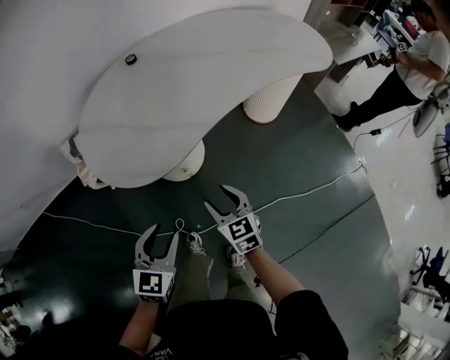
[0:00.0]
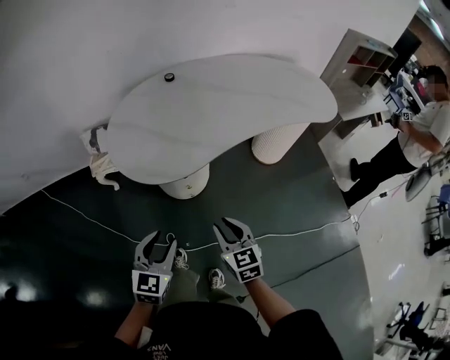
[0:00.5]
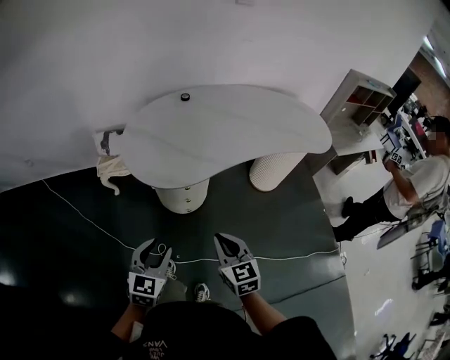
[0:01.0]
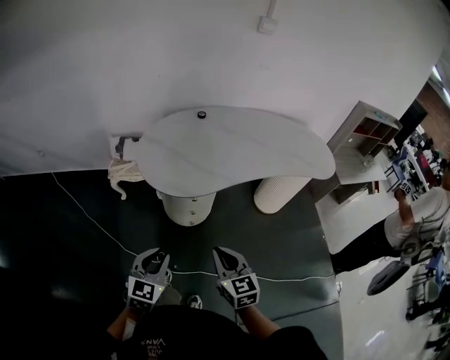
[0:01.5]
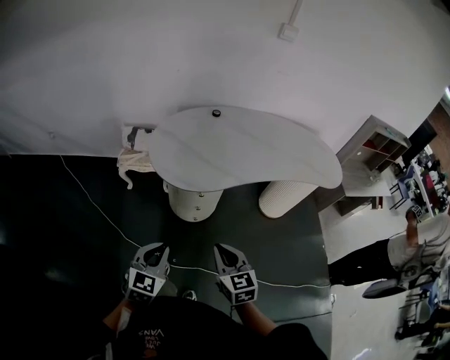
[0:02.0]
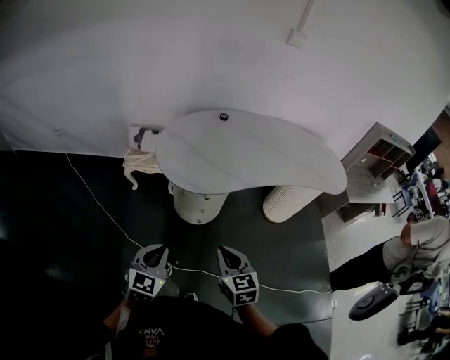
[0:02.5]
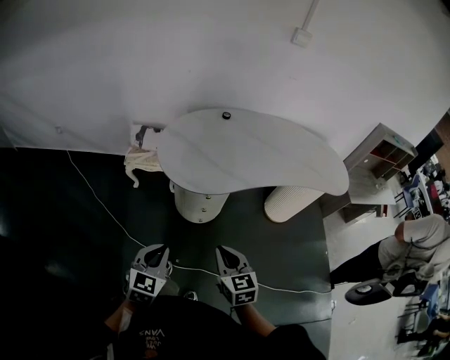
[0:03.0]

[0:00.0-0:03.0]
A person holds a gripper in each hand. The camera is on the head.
0:00.0 to 0:01.5: The left gripper goes about 15 cm backward and upward, and closes its fingers; the right gripper goes approximately 20 cm upward and backward, and closes up.
0:01.5 to 0:03.0: The grippers move only a little.

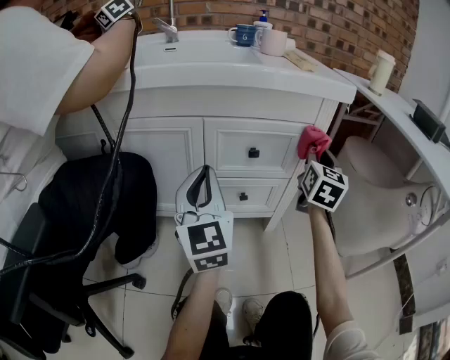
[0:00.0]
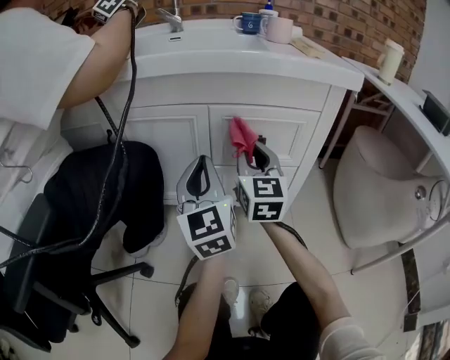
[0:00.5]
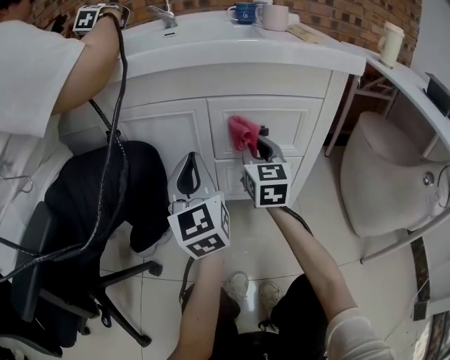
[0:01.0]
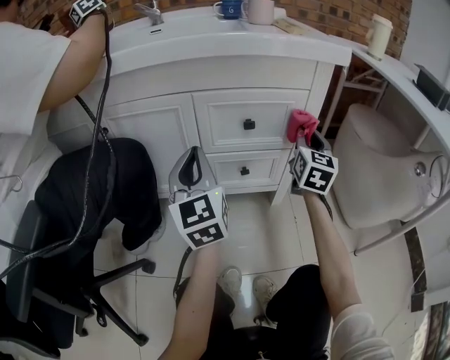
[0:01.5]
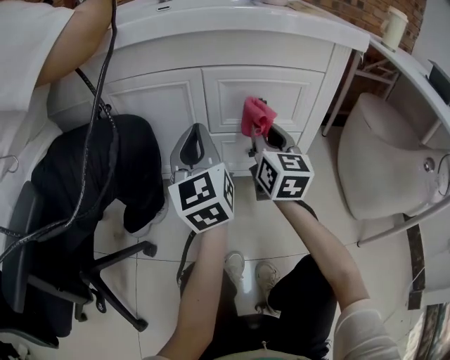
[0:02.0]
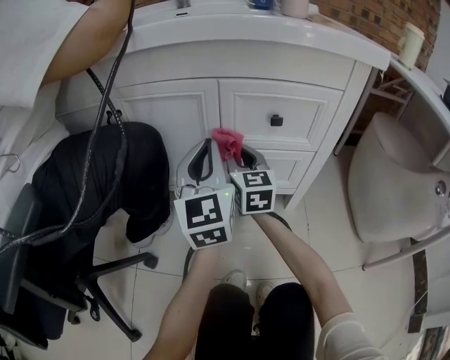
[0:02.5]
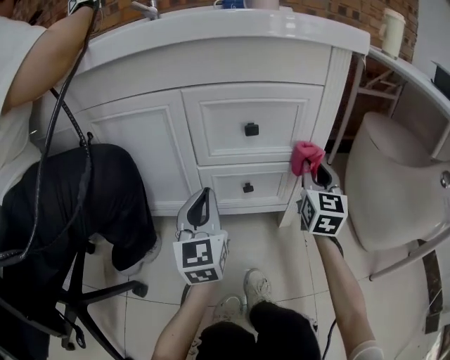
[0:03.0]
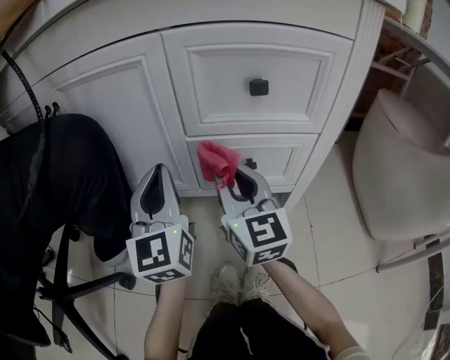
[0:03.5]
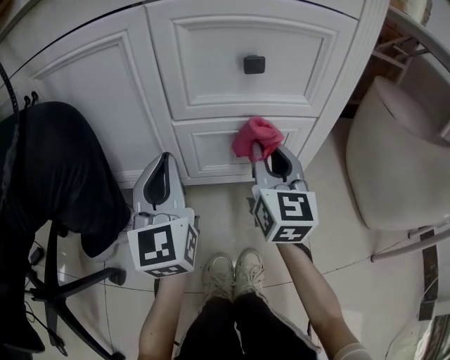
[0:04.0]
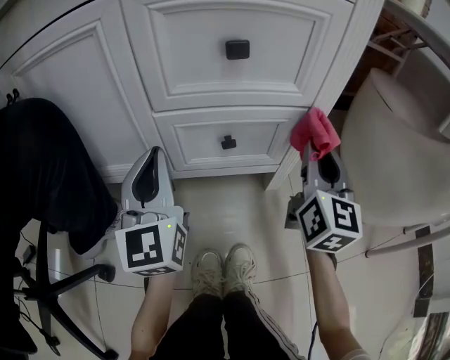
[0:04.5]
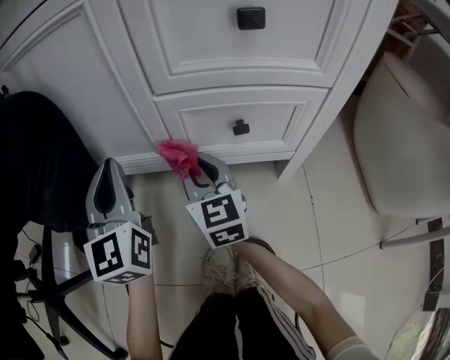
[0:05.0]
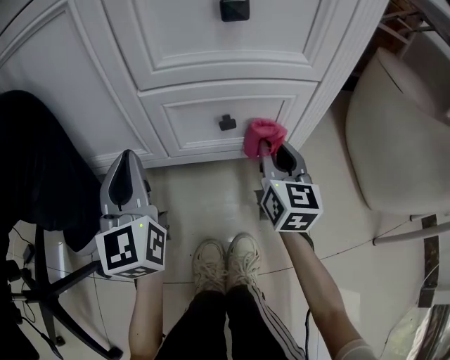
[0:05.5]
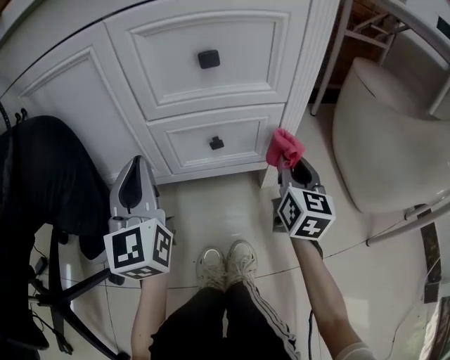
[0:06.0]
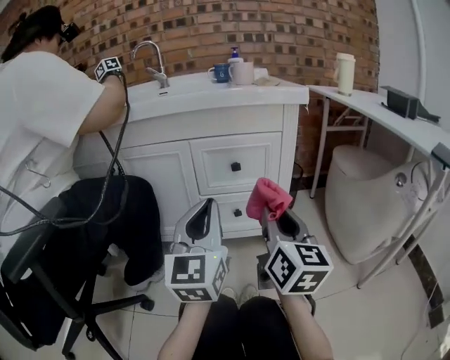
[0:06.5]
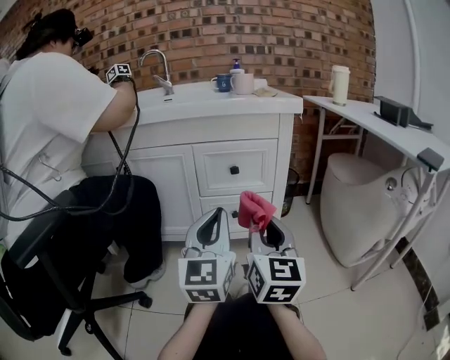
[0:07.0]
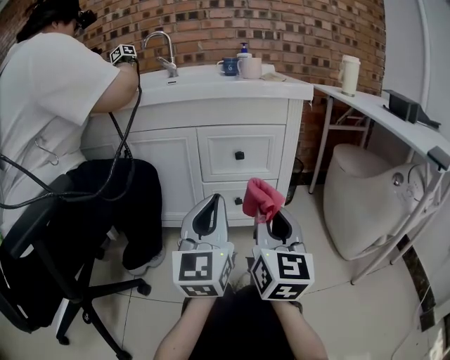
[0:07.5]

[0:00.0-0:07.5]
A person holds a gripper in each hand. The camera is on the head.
0:00.0 to 0:02.0: The right gripper goes left and right, approximately 20 cm each way, reversing 2 times, and rotates roughly 30 degrees.
0:02.0 to 0:04.0: The right gripper moves left and right over approximately 25 cm, changing direction 3 times; the left gripper moves downward, approximately 15 cm.
0:04.0 to 0:05.5: The right gripper moves left and right over approximately 30 cm, changing direction 2 times. Meanwhile the left gripper goes some 5 cm downward, and travels to the left and back again, about 10 cm each way.
0:05.5 to 0:07.5: The left gripper shifts approximately 35 cm upward, backward and to the right; the right gripper goes some 40 cm upward and backward.

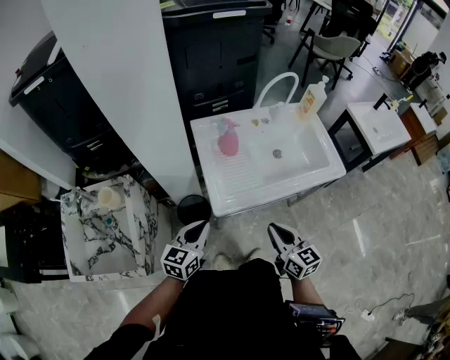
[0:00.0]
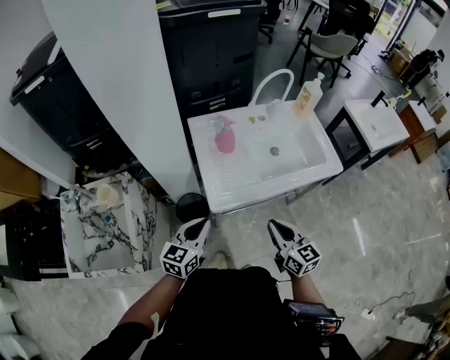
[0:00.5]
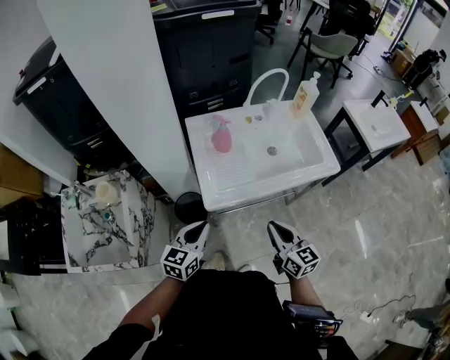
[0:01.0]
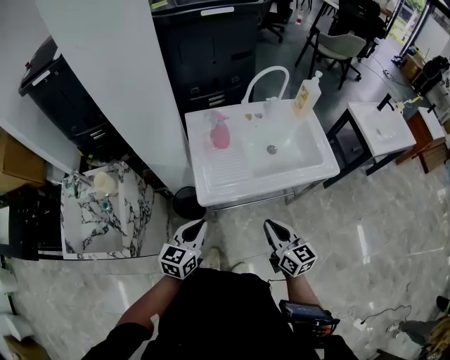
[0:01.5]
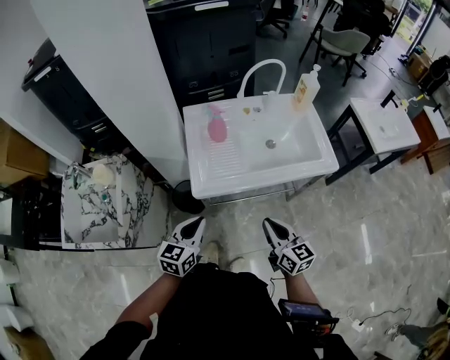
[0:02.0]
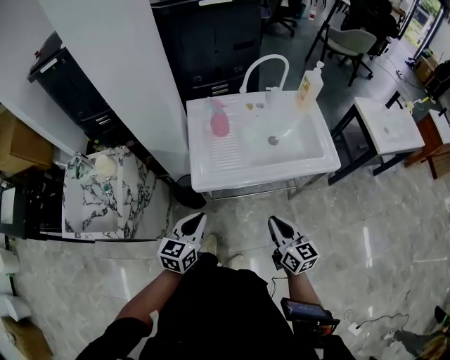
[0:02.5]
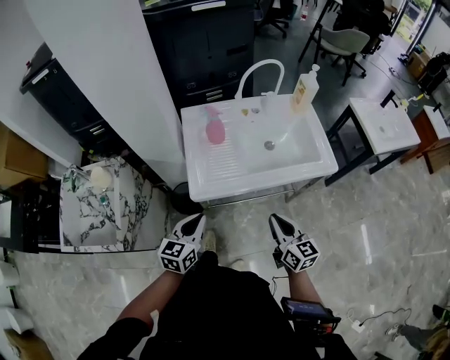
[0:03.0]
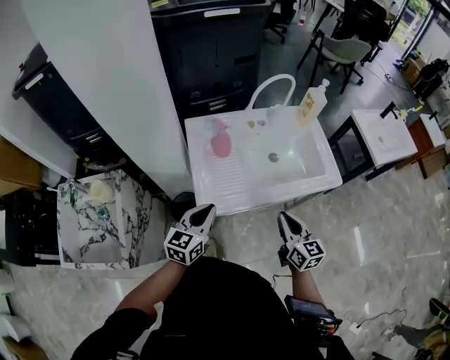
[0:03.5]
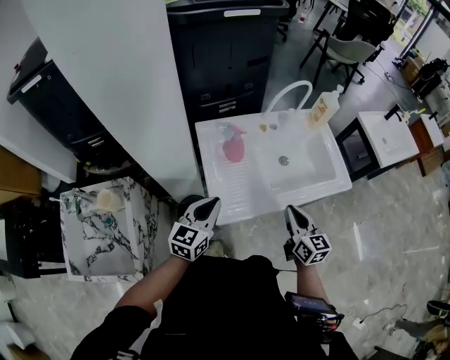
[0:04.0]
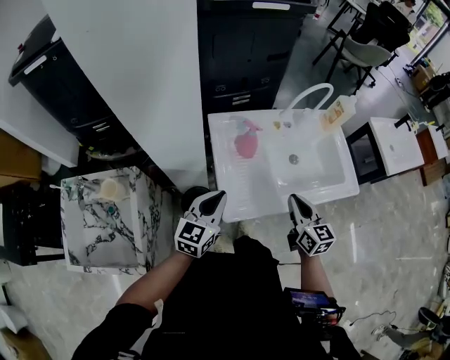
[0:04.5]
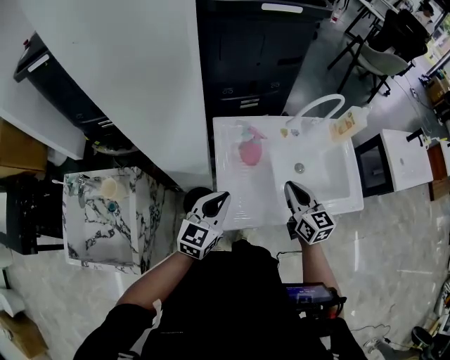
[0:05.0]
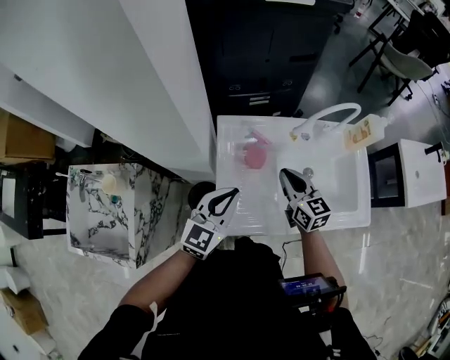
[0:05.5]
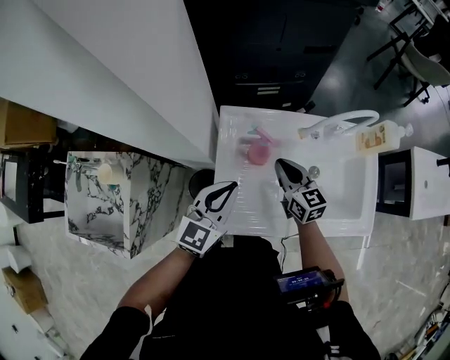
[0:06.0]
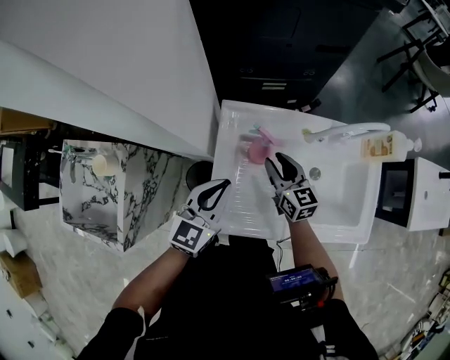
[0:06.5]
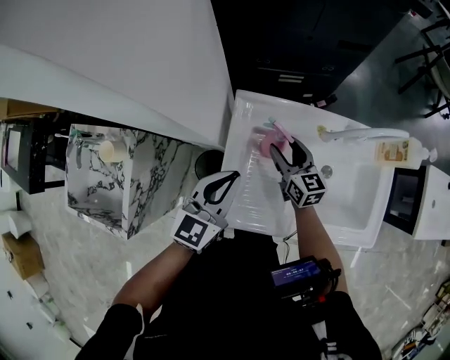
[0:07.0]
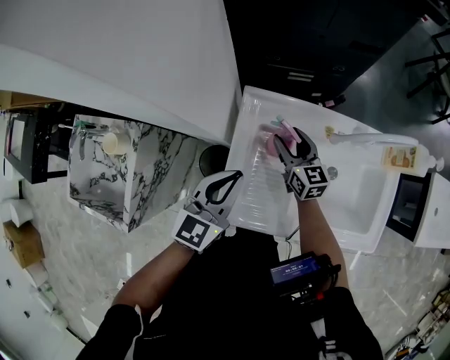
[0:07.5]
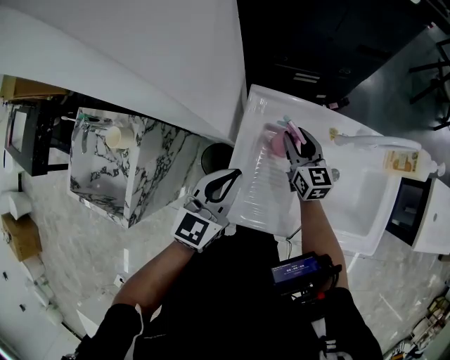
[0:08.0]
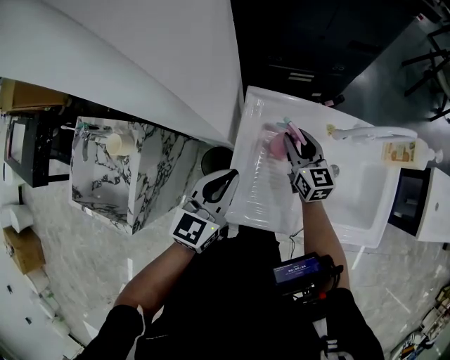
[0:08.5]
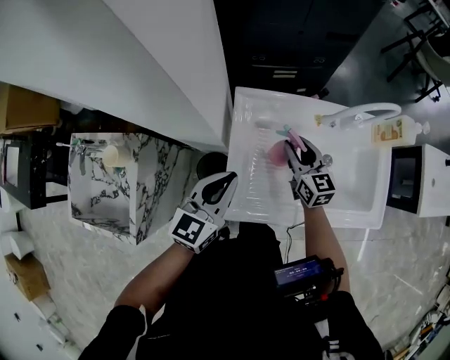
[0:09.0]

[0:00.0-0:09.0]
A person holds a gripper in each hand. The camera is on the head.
0:00.0 to 0:02.0: The left gripper moves to the right and backward, about 10 cm. The right gripper goes some 10 cm to the right.
0:02.0 to 0:04.5: The right gripper heads forward, covering some 20 cm. The left gripper heads forward and to the left, covering roughly 20 cm.
0:04.5 to 0:07.0: The left gripper travels forward by about 10 cm. The right gripper moves forward, approximately 25 cm, changes its angle by some 30 degrees, and opens up.
0:07.0 to 0:09.0: The right gripper shifts by about 5 cm, and closes up.

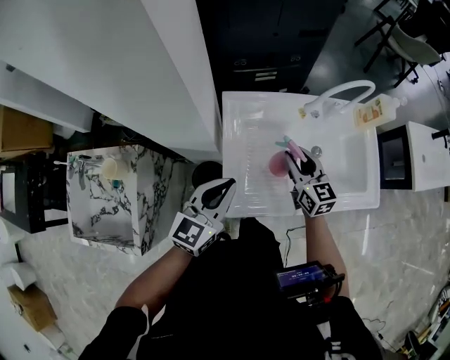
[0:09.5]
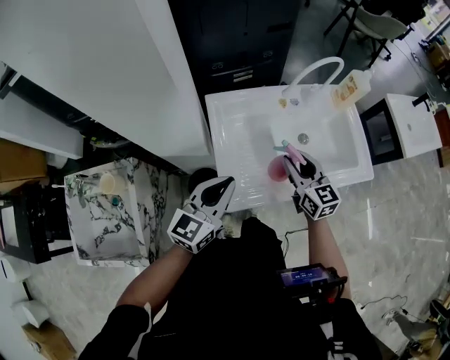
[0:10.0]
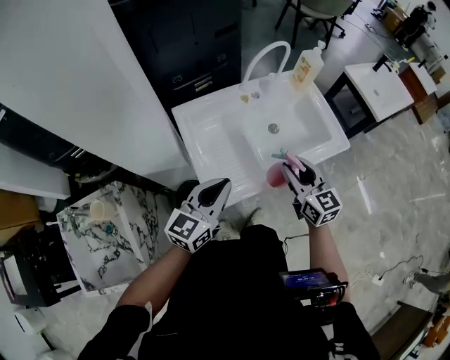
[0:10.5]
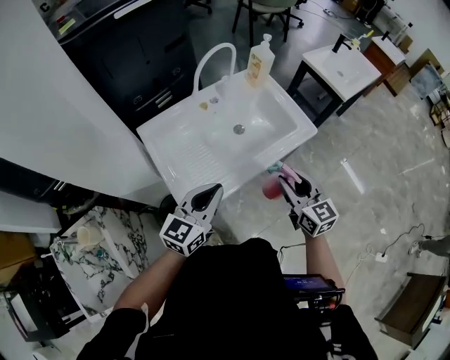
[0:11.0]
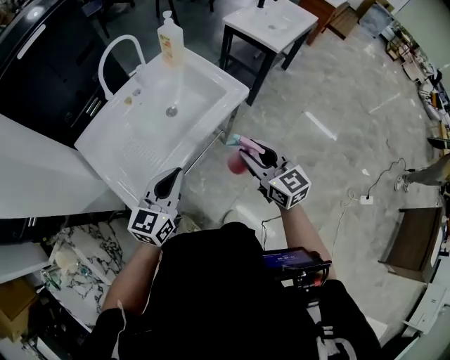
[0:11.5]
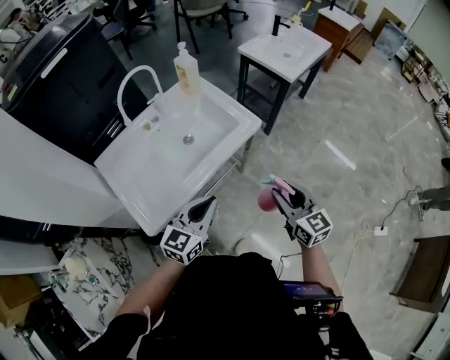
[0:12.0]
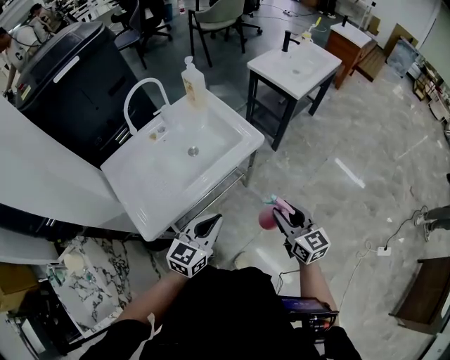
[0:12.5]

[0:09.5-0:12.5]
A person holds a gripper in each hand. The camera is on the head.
0:09.5 to 0:11.0: The right gripper changes place by roughly 30 cm, and rotates roughly 30 degrees, while the left gripper moves approximately 15 cm, and turns by approximately 30 degrees.
0:11.0 to 0:12.5: The two grippers go about 20 cm to the right.

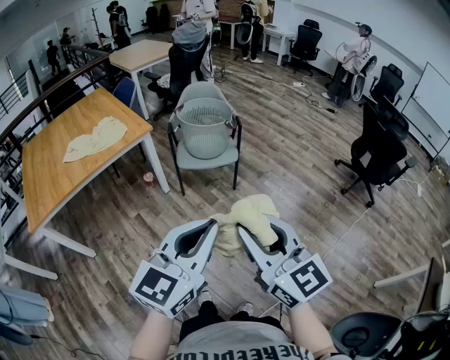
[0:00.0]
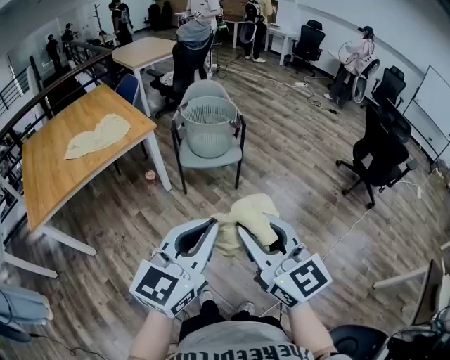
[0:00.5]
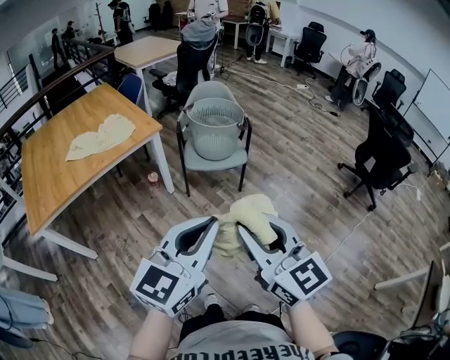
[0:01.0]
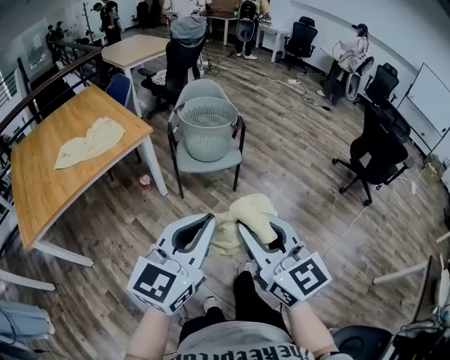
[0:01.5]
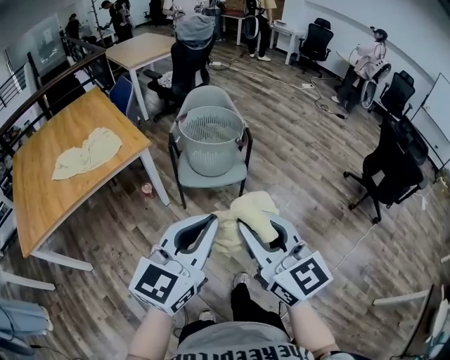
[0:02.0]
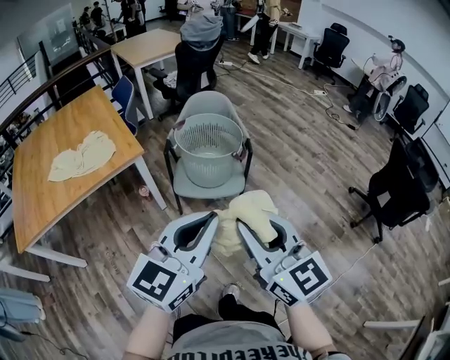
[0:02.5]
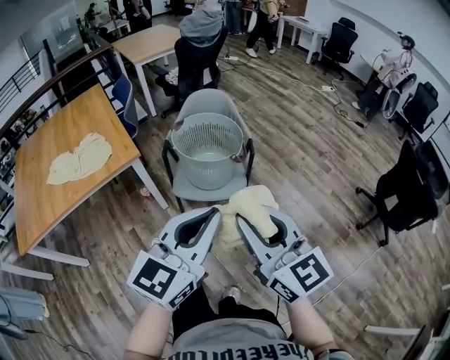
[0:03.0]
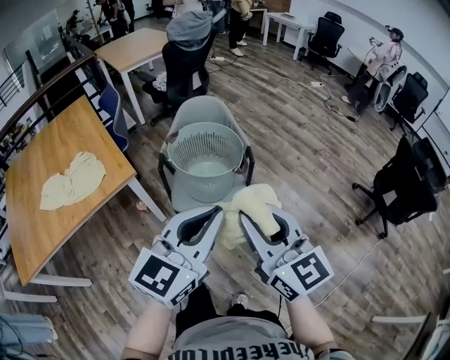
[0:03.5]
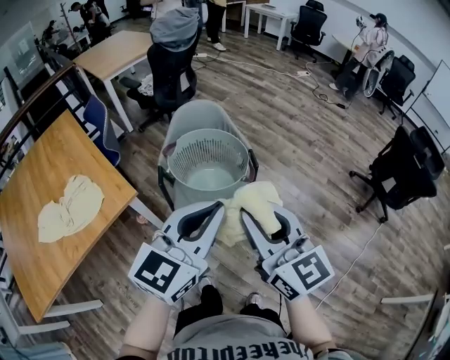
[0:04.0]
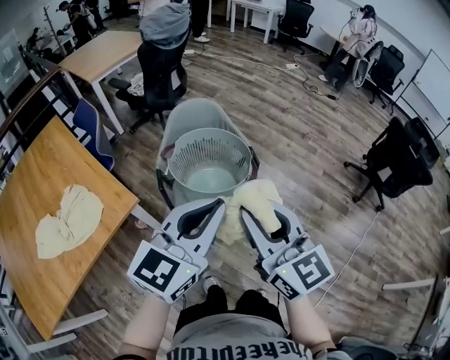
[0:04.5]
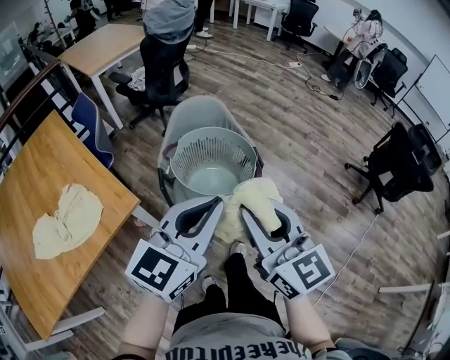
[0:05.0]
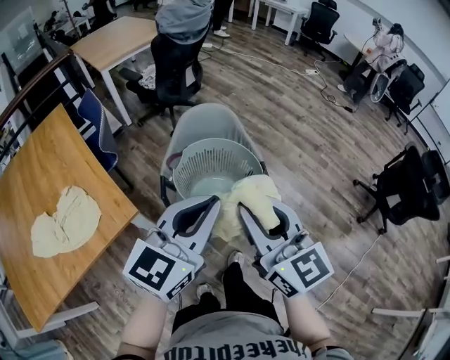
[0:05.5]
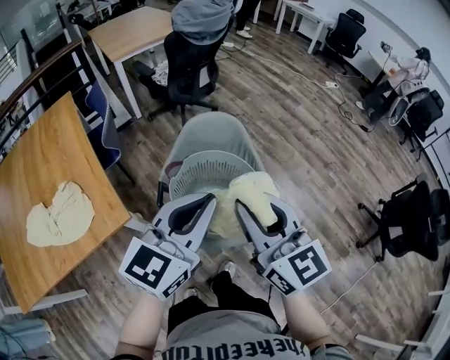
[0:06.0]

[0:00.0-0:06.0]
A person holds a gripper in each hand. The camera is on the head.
0:00.0 to 0:02.0: The two grippers go roughly 20 cm forward.
0:02.0 to 0:04.0: Both grippers move forward, roughly 30 cm.
0:04.0 to 0:06.0: Both grippers travel together forward, roughly 20 cm.
